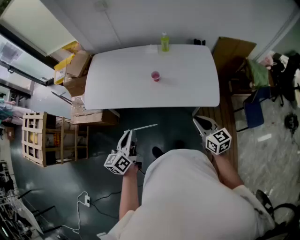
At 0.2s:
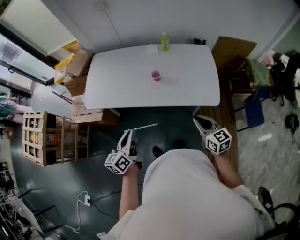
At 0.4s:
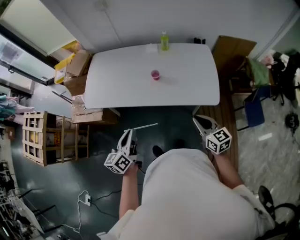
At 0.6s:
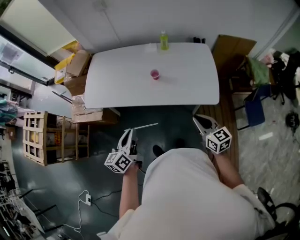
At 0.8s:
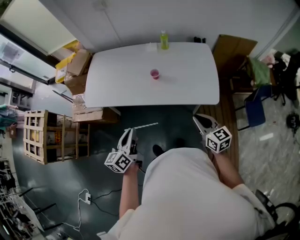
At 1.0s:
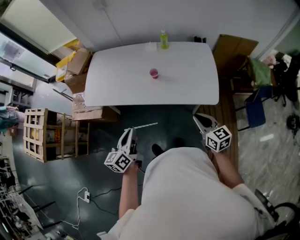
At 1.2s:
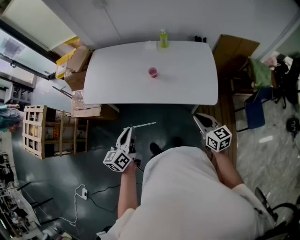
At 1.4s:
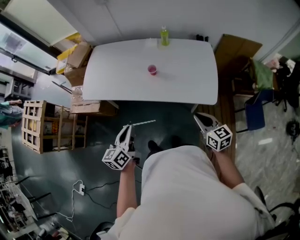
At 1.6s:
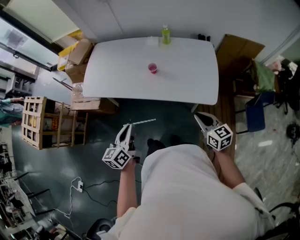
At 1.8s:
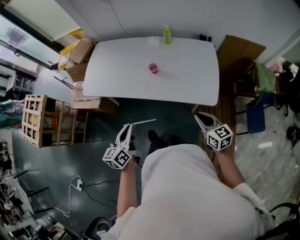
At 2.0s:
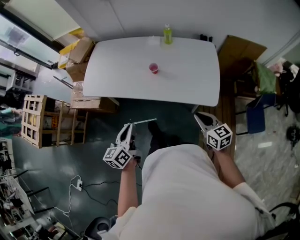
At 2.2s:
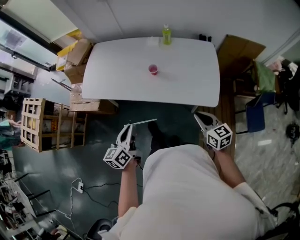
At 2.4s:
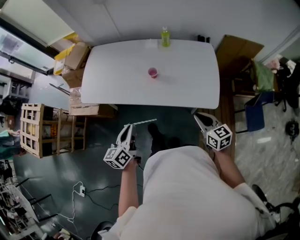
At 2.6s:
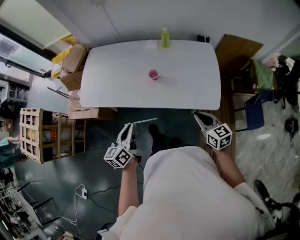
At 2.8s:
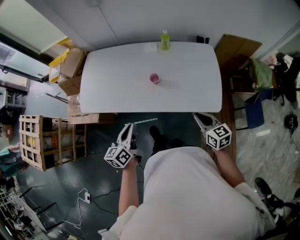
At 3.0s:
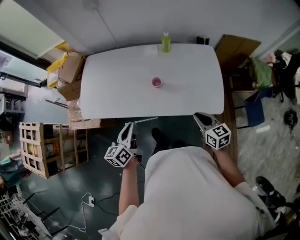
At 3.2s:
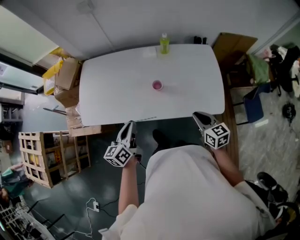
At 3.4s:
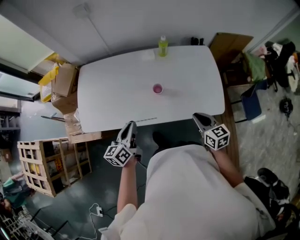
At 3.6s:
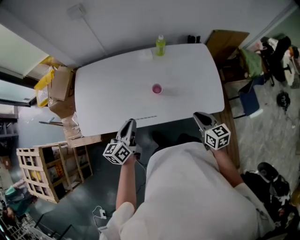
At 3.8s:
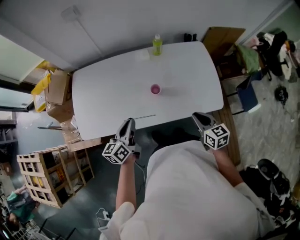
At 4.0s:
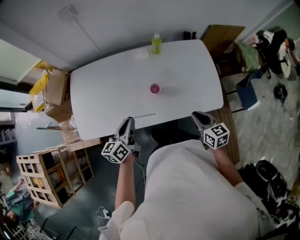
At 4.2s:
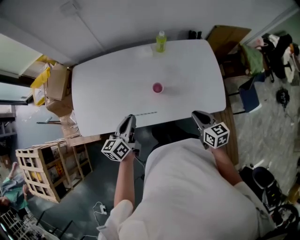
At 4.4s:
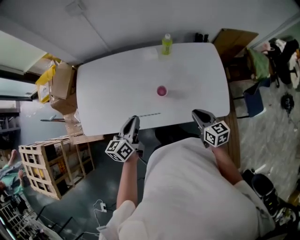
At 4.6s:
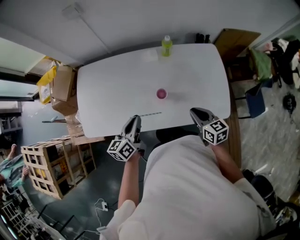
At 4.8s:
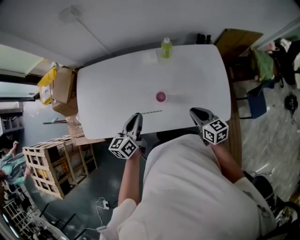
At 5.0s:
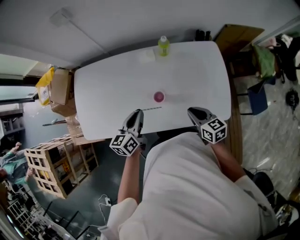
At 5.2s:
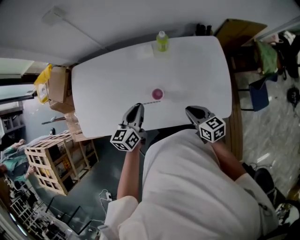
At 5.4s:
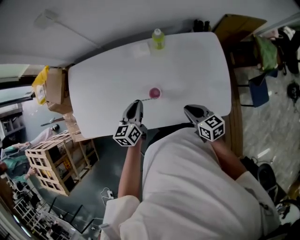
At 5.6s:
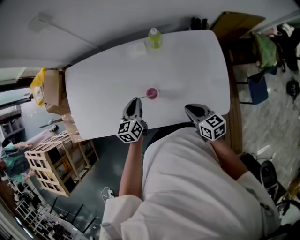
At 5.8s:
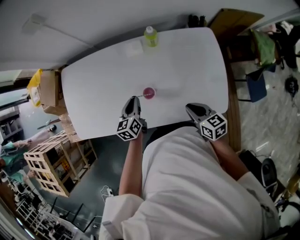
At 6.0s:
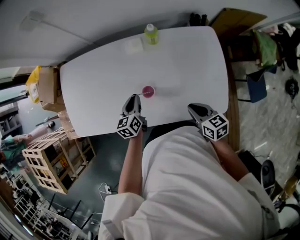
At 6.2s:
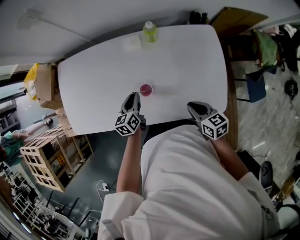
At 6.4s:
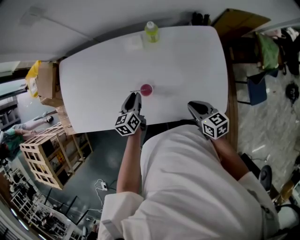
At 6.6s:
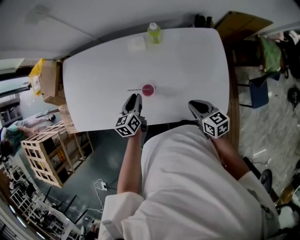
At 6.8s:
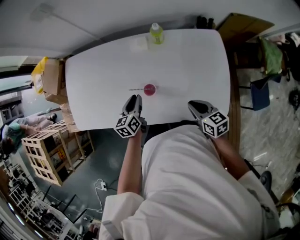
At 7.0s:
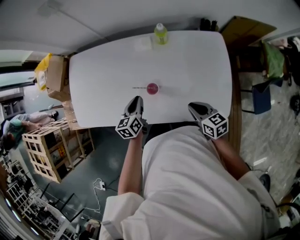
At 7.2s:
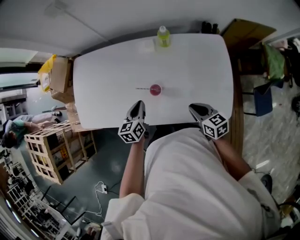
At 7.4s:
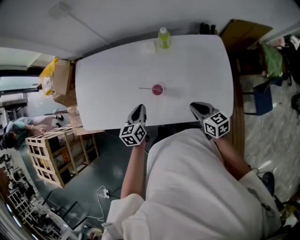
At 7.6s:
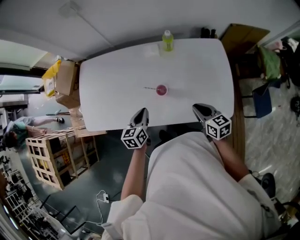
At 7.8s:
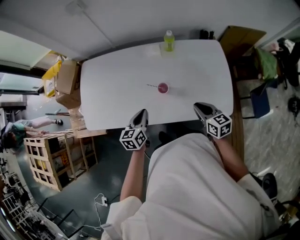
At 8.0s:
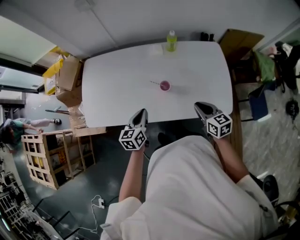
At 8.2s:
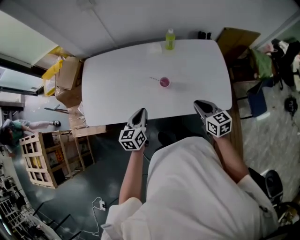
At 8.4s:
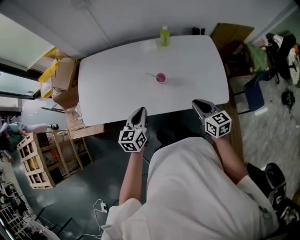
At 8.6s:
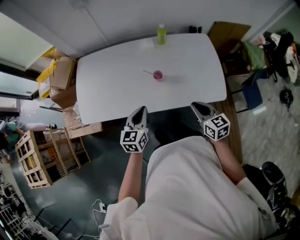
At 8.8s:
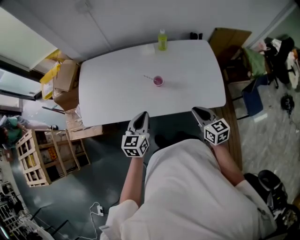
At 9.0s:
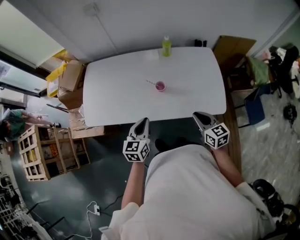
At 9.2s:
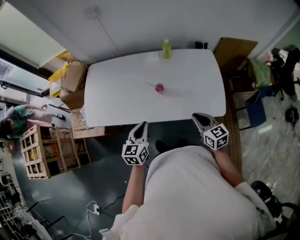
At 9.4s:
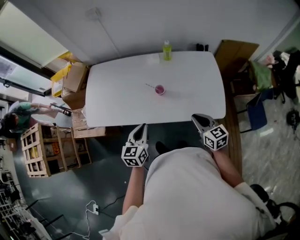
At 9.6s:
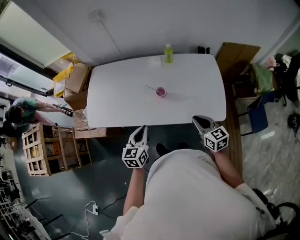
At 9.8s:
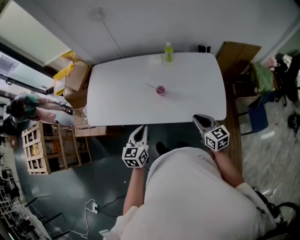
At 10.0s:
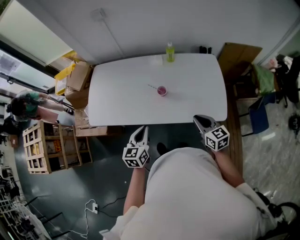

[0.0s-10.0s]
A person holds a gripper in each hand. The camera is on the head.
0.0s to 1.4s: The left gripper shifts by about 5 cm. Meanwhile the right gripper moves to the right, some 5 cm.
1.4s to 2.8s: Both grippers move forward, roughly 10 cm.
2.8s to 4.2s: The right gripper heads to the left and forward, covering about 10 cm. Meanwhile the left gripper shifts some 15 cm forward.
4.2s to 5.8s: The right gripper heads forward and downward, covering about 10 cm. Meanwhile the left gripper goes roughly 20 cm downward, forward and to the right, and rotates about 20 degrees.
5.8s to 7.2s: The grippers stay close to where they were, moving slightly.
7.2s to 8.6s: The left gripper goes roughly 15 cm backward and upward, and rotates approximately 20 degrees. The right gripper shifts about 15 cm backward, upward and to the left.
8.6s to 10.0s: The left gripper shifts roughly 5 cm backward.

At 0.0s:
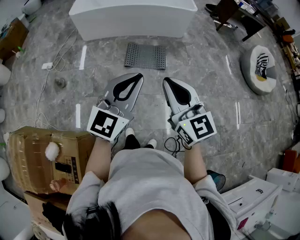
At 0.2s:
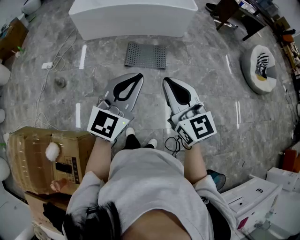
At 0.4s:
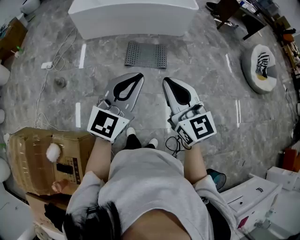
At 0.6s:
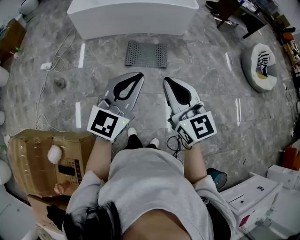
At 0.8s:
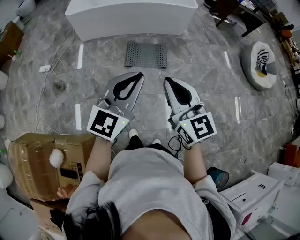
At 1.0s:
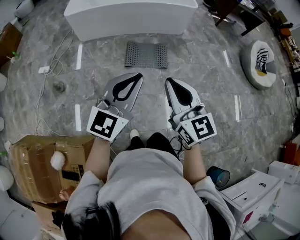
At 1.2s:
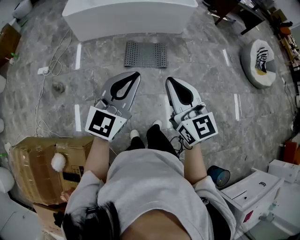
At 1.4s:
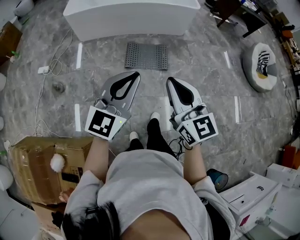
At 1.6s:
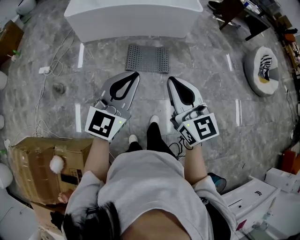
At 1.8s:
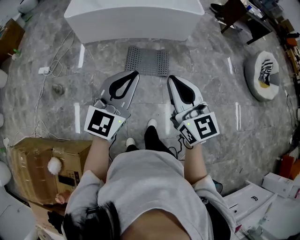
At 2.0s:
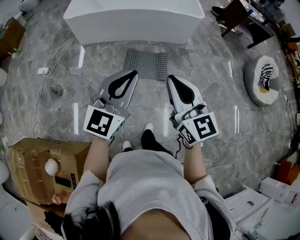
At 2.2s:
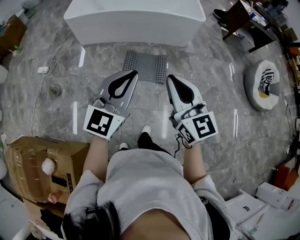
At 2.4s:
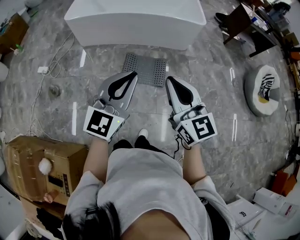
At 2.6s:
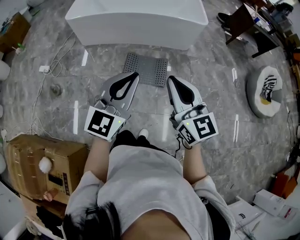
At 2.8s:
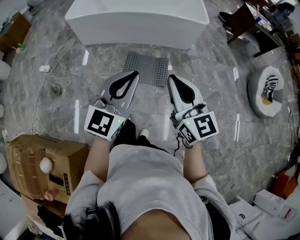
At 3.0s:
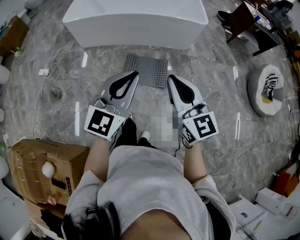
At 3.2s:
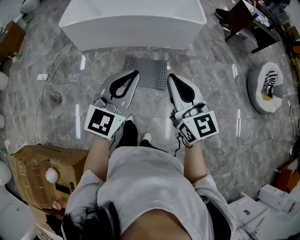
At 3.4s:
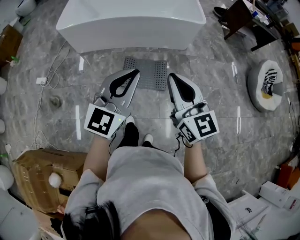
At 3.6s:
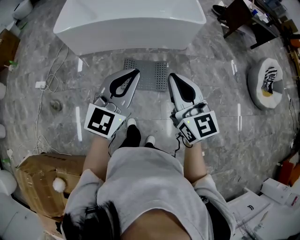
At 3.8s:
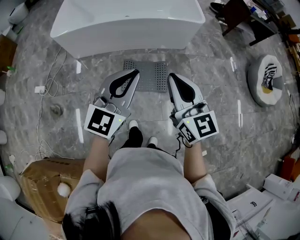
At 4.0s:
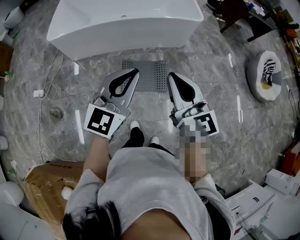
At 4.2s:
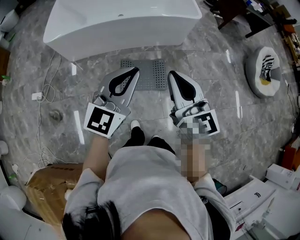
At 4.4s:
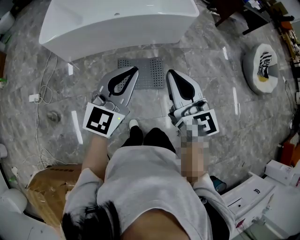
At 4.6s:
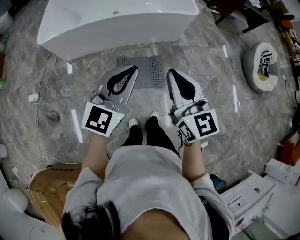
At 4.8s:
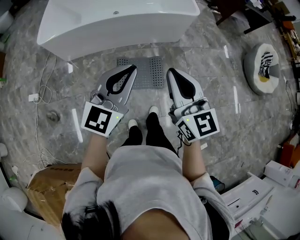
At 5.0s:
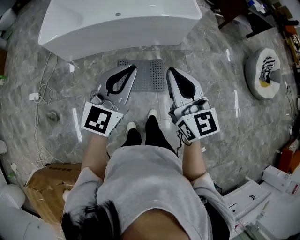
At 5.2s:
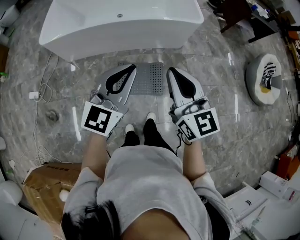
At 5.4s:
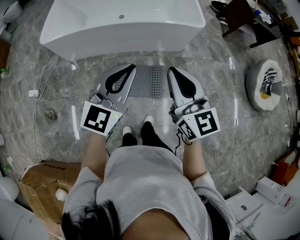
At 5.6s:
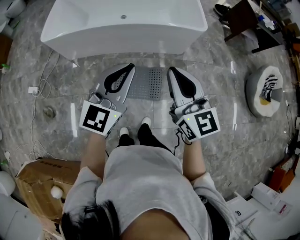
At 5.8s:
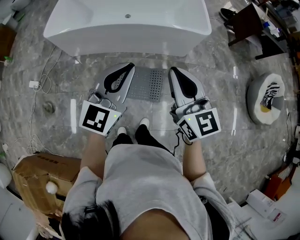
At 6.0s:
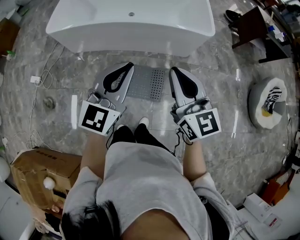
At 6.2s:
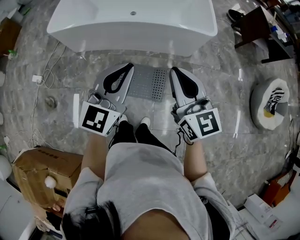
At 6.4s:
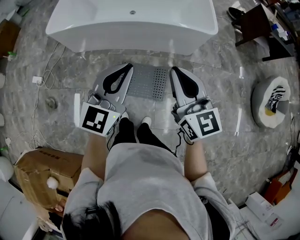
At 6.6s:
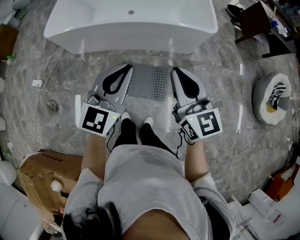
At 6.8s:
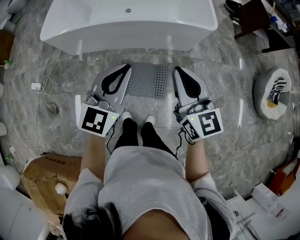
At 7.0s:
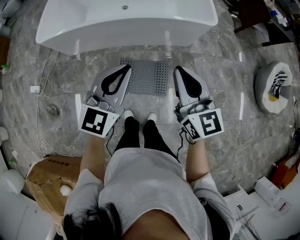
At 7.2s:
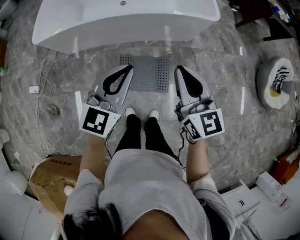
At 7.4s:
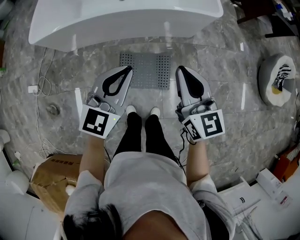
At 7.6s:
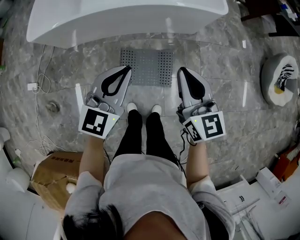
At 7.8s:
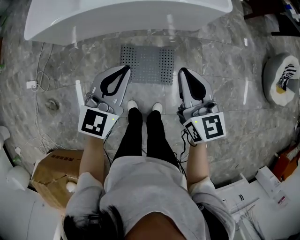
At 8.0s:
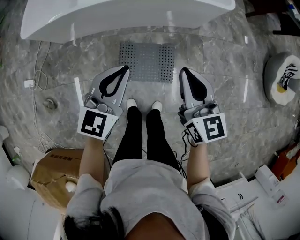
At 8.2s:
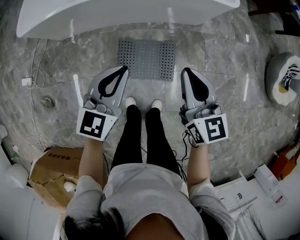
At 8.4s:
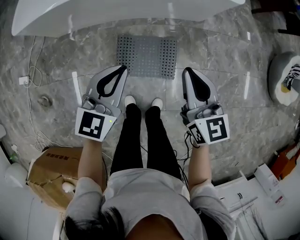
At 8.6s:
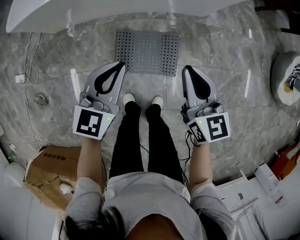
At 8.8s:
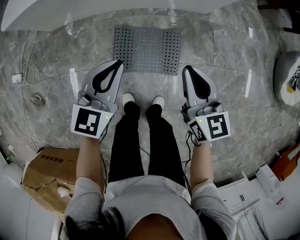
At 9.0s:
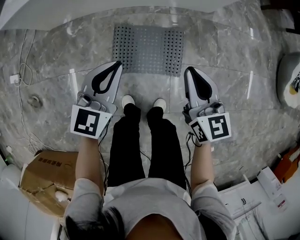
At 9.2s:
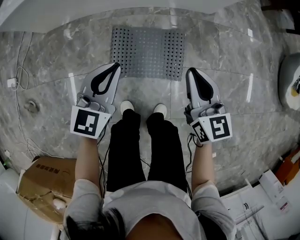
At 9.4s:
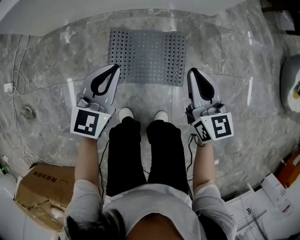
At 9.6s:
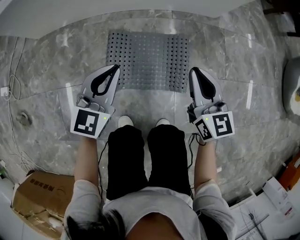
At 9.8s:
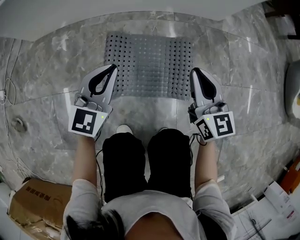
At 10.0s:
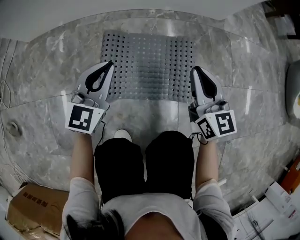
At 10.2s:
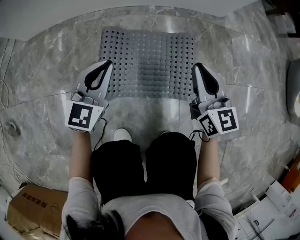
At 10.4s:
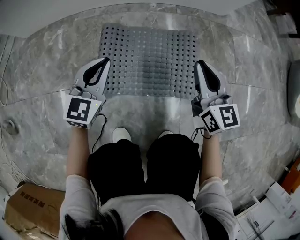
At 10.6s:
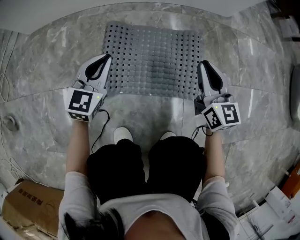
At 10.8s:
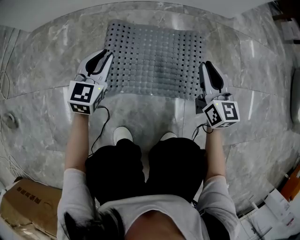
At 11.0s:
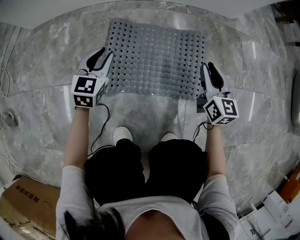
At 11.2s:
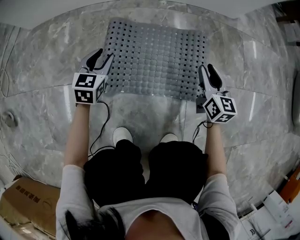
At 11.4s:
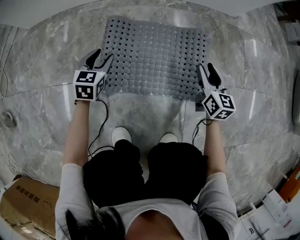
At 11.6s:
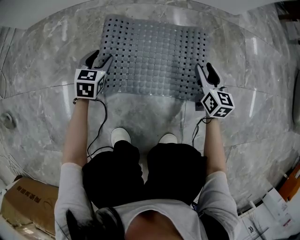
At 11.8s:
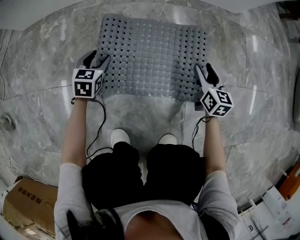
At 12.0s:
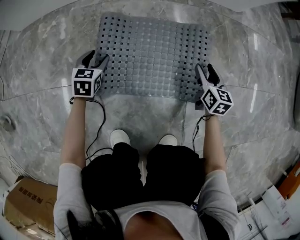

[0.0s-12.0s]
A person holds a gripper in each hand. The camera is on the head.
0.0s to 1.6s: The left gripper goes approximately 15 cm forward and to the left. The right gripper shifts approximately 15 cm forward.
1.6s to 3.0s: The grippers both shift forward and to the right by some 20 cm.
3.0s to 4.4s: Both grippers move forward and to the left, roughly 20 cm.
4.4s to 6.0s: Both grippers travel together forward and to the right, approximately 20 cm.
6.0s to 7.6s: Both grippers travel together downward and forward, approximately 15 cm.
7.6s to 9.0s: Both grippers travel together downward, roughly 30 cm.
9.0s to 10.4s: Both grippers travel together downward, roughly 35 cm.
10.4s to 12.0s: Both grippers move downward, roughly 25 cm. The right gripper changes its angle by roughly 30 degrees, and opens, while the left gripper turns by approximately 30 degrees, and opens up.

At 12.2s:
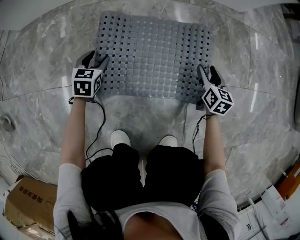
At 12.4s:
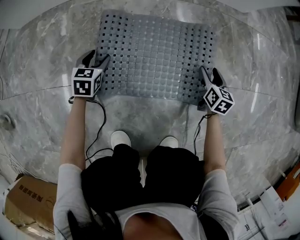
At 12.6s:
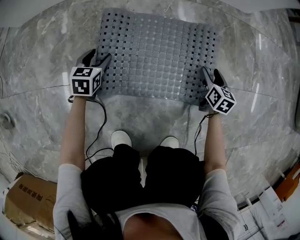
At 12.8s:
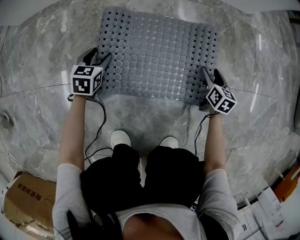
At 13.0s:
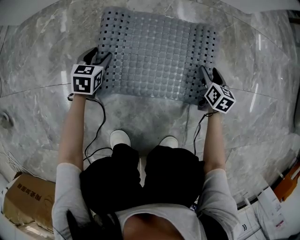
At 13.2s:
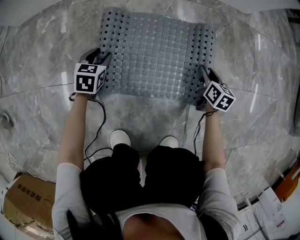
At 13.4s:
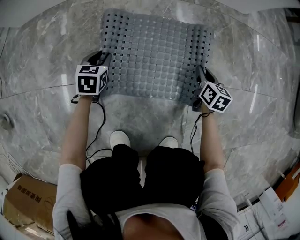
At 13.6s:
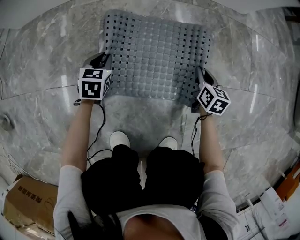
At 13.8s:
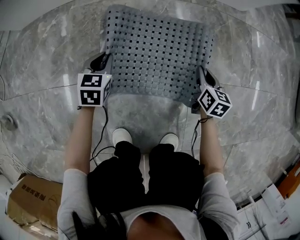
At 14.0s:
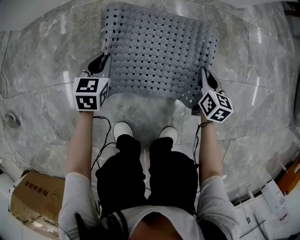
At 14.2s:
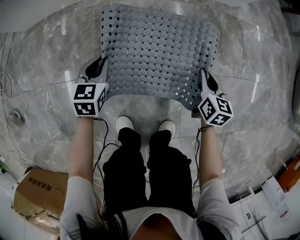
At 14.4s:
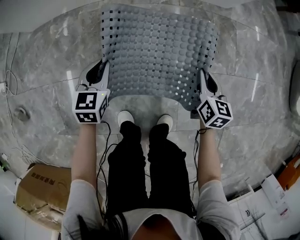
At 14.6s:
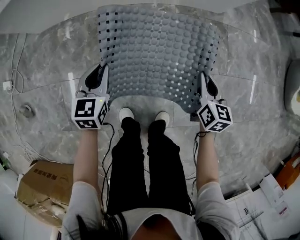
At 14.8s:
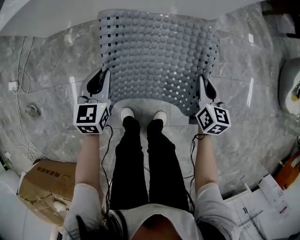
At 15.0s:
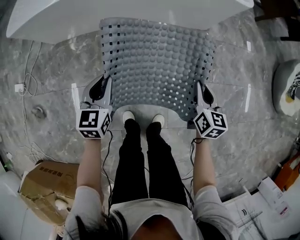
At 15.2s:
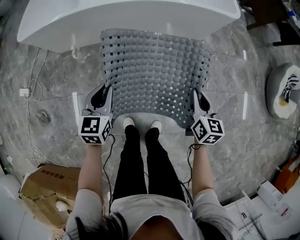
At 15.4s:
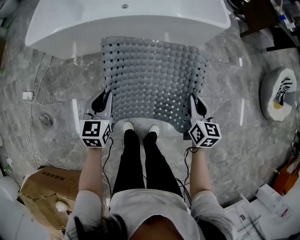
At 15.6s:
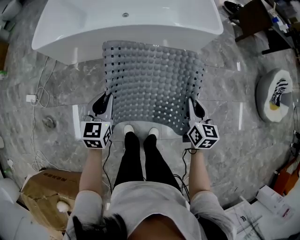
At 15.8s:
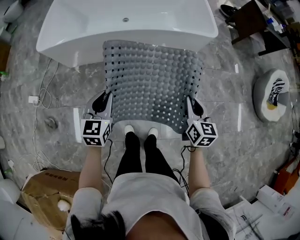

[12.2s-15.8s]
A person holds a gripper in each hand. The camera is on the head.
12.2s to 14.0s: The two grippers go roughly 10 cm upward. The right gripper closes up. Meanwhile the left gripper closes its fingers.
14.0s to 15.8s: The two grippers go some 70 cm upward.
